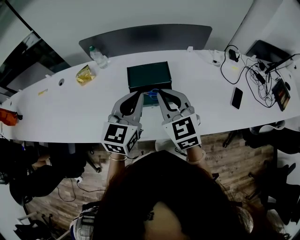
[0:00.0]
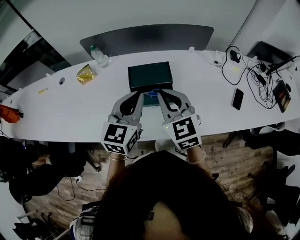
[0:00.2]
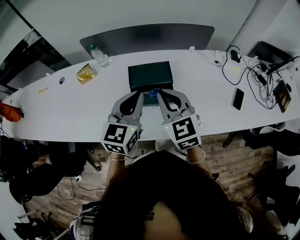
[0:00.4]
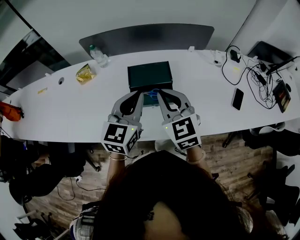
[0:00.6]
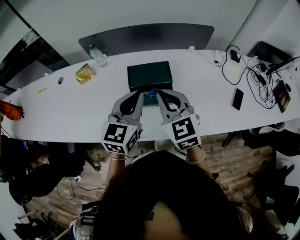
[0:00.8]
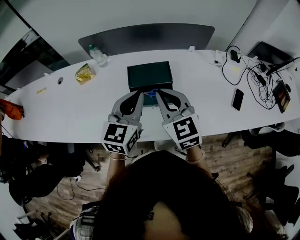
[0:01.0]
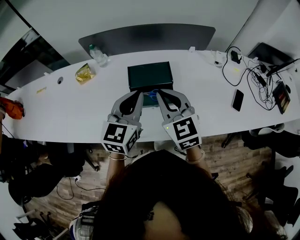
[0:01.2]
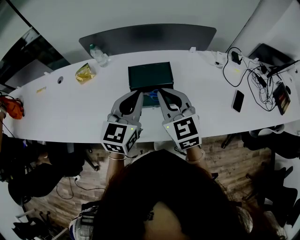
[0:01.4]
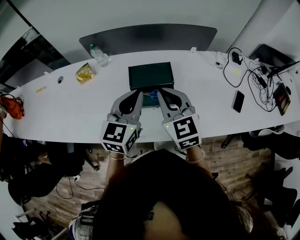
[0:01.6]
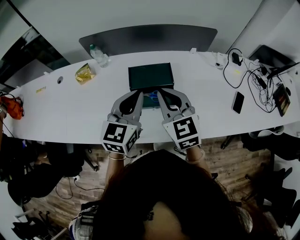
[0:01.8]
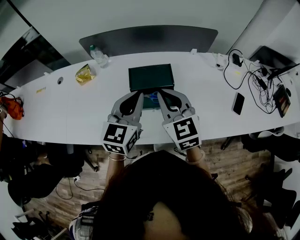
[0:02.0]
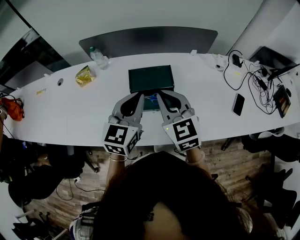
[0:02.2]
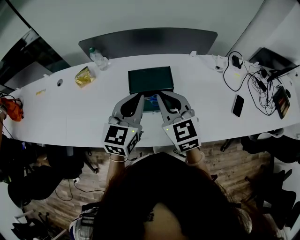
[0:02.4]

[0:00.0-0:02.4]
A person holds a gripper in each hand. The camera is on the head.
0:00.0 to 0:02.4: The grippers stay close to where they were, moving slightly.

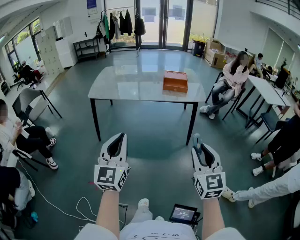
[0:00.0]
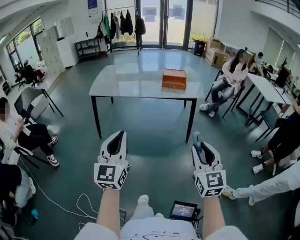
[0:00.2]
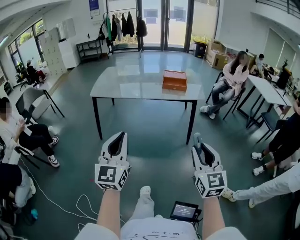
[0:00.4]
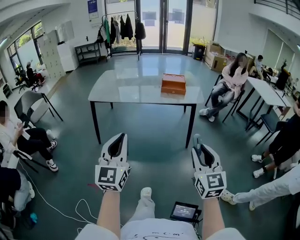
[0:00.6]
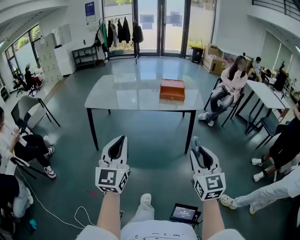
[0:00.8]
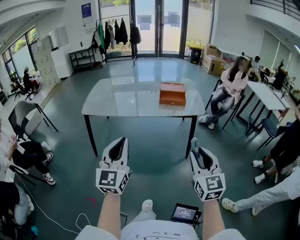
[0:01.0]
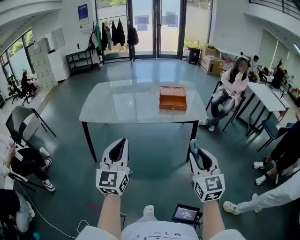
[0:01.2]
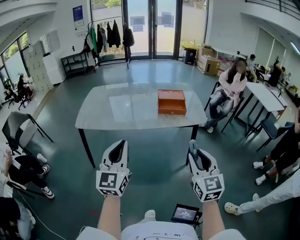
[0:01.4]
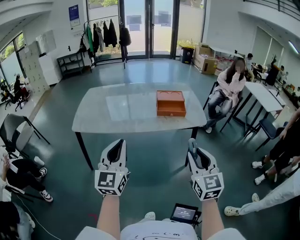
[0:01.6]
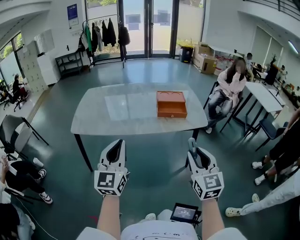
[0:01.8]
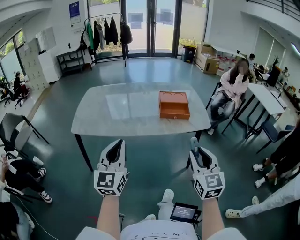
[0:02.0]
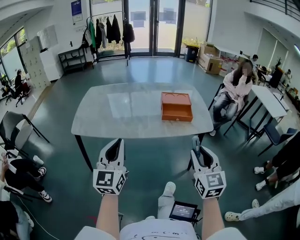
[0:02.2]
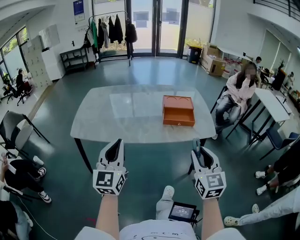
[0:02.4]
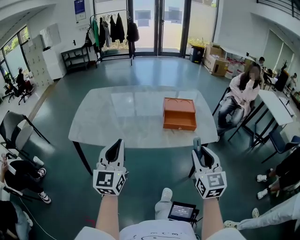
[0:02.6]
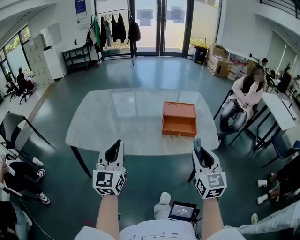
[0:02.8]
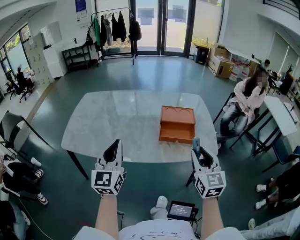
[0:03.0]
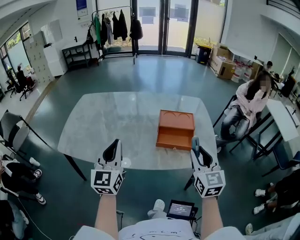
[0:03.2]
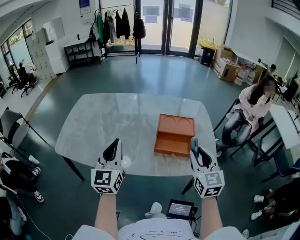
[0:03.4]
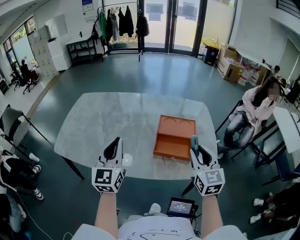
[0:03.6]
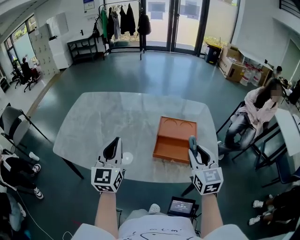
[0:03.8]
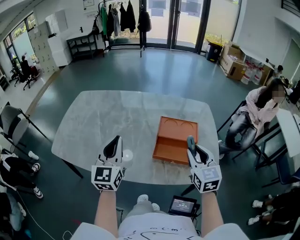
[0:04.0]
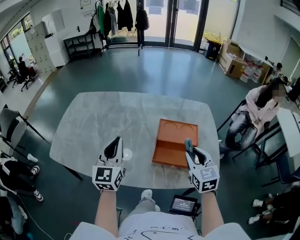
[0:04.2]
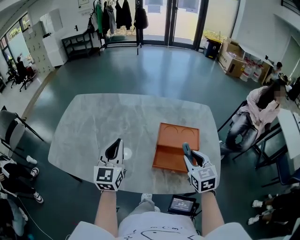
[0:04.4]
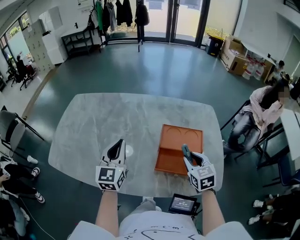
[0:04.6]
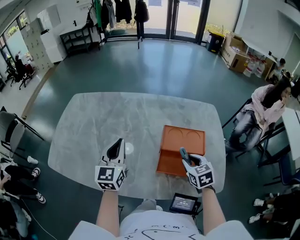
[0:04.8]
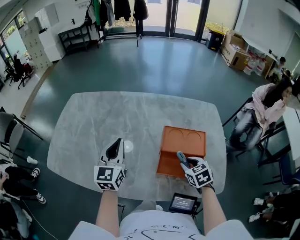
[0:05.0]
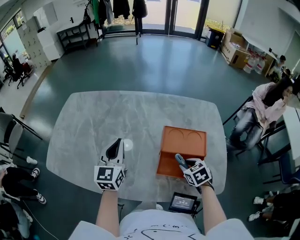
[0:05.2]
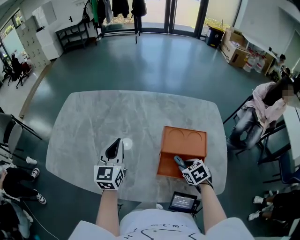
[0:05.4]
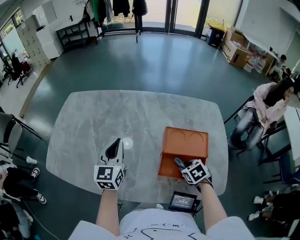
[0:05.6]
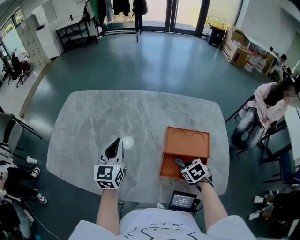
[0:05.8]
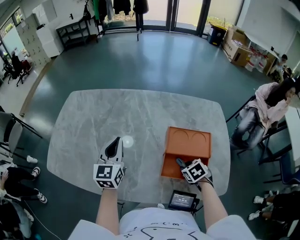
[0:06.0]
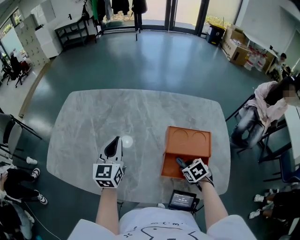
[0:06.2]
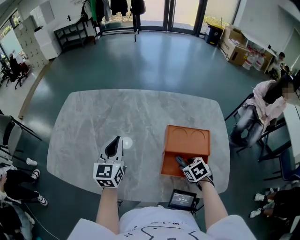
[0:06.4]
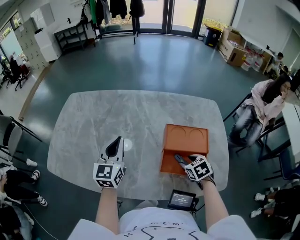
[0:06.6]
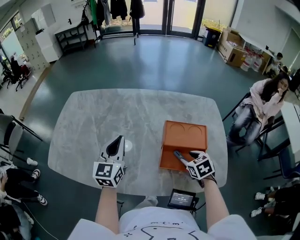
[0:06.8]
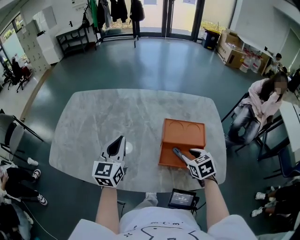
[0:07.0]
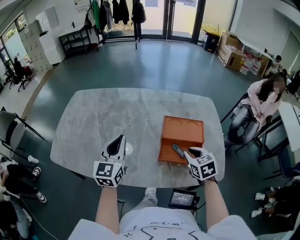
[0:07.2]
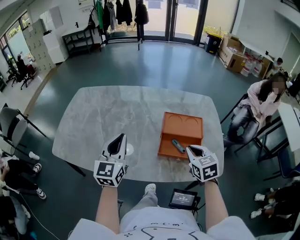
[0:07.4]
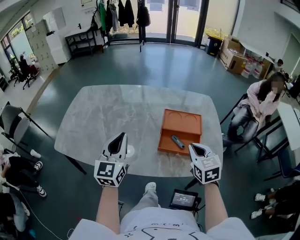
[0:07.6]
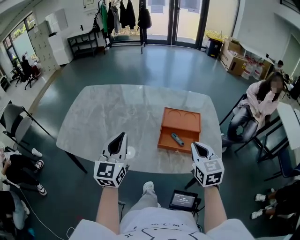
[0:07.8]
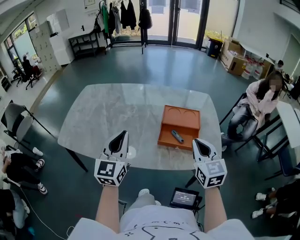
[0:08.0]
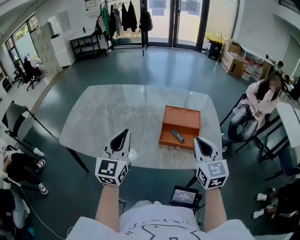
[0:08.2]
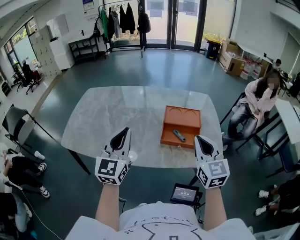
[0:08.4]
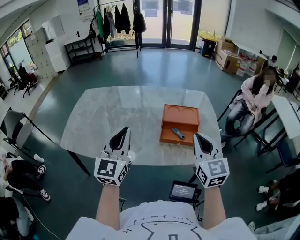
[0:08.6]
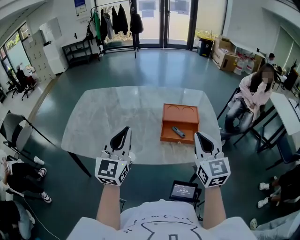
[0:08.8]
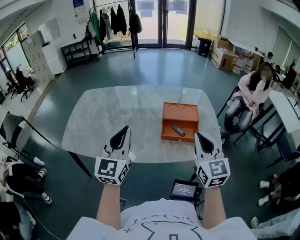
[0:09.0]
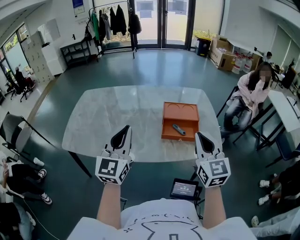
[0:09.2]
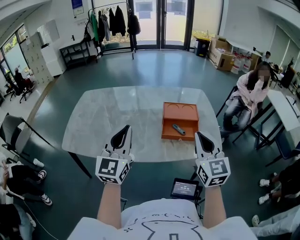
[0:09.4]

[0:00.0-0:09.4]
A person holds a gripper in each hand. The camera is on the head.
0:00.0 to 0:01.6: The grippers both shift forward by some 25 cm.
0:01.6 to 0:03.2: Both grippers travel together forward, some 30 cm.
0:03.2 to 0:04.8: The grippers both shift forward and downward by about 25 cm. The right gripper tilts its fingers some 30 degrees downward.
0:04.8 to 0:06.2: The left gripper moves forward, about 5 cm, while the right gripper moves downward, some 10 cm, and turns by some 30 degrees.
0:06.2 to 0:07.8: The left gripper travels backward and upward by about 20 cm. The right gripper heads upward and backward, covering some 25 cm, angles its fingers upward, by approximately 50 degrees, and closes.
0:07.8 to 0:09.4: The right gripper moves upward and backward, about 15 cm. The left gripper is displaced upward and backward by roughly 10 cm.

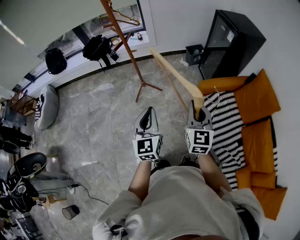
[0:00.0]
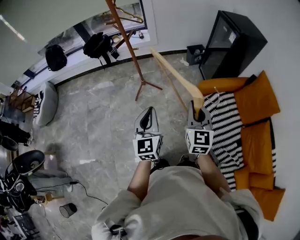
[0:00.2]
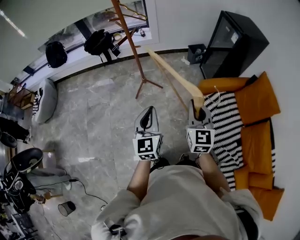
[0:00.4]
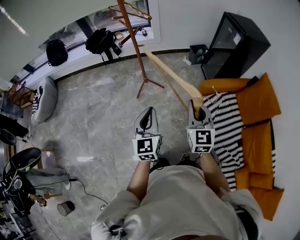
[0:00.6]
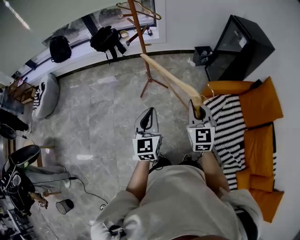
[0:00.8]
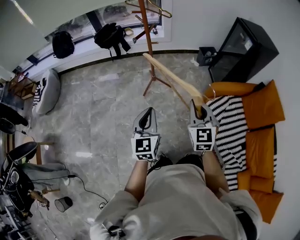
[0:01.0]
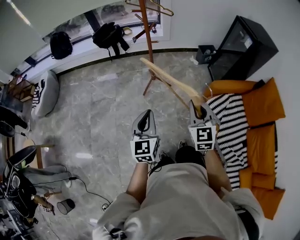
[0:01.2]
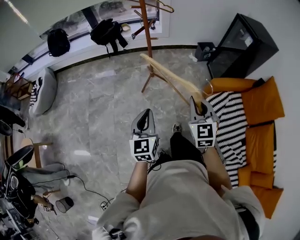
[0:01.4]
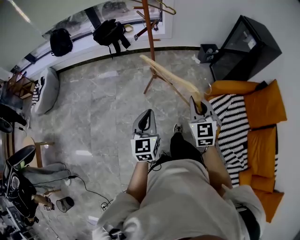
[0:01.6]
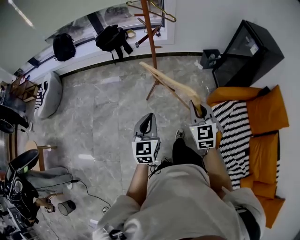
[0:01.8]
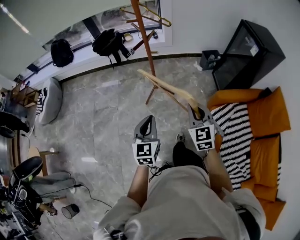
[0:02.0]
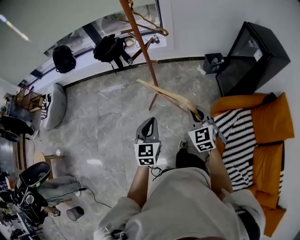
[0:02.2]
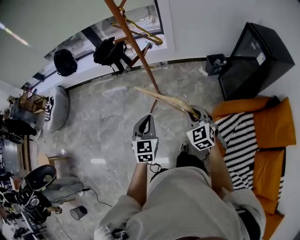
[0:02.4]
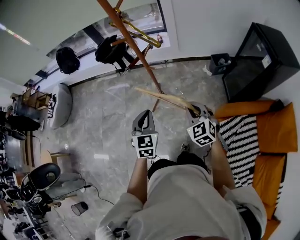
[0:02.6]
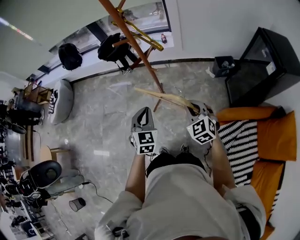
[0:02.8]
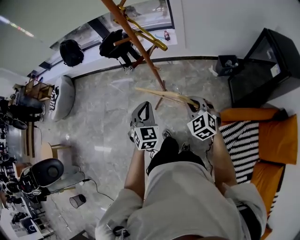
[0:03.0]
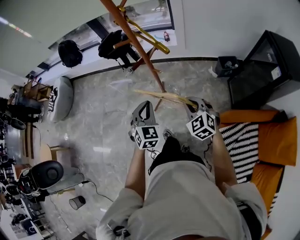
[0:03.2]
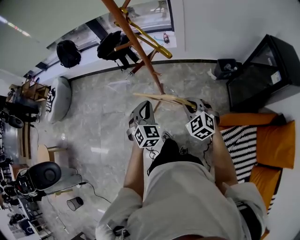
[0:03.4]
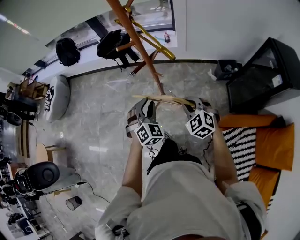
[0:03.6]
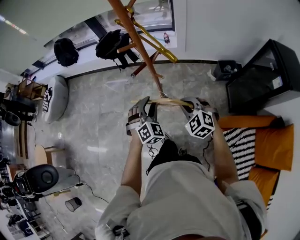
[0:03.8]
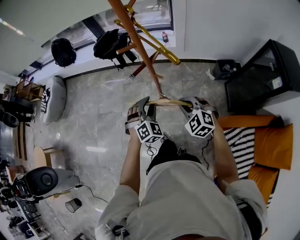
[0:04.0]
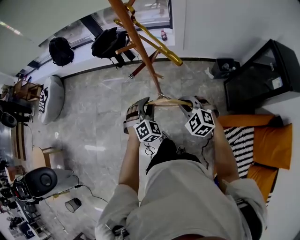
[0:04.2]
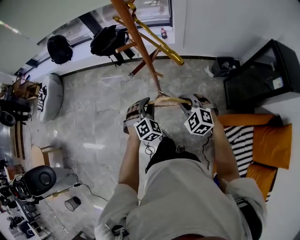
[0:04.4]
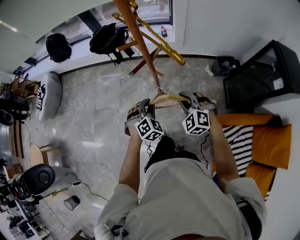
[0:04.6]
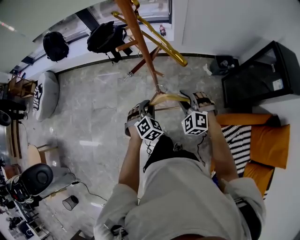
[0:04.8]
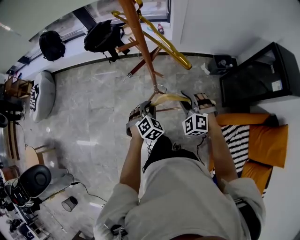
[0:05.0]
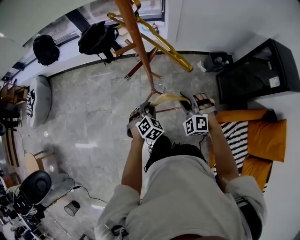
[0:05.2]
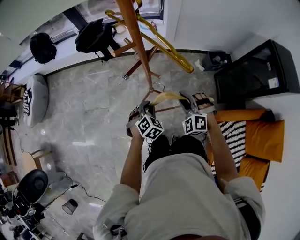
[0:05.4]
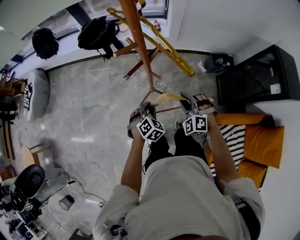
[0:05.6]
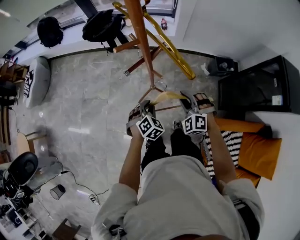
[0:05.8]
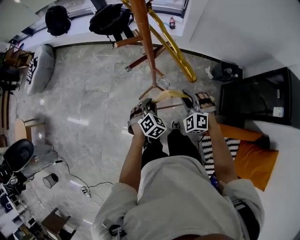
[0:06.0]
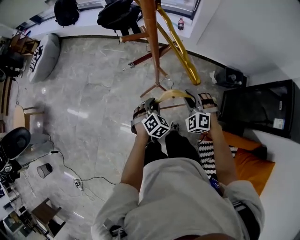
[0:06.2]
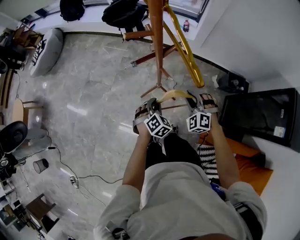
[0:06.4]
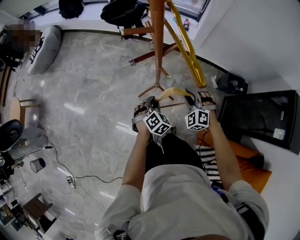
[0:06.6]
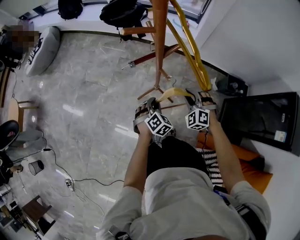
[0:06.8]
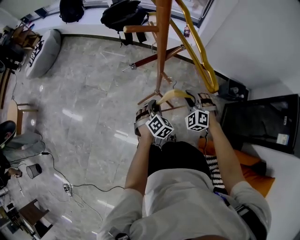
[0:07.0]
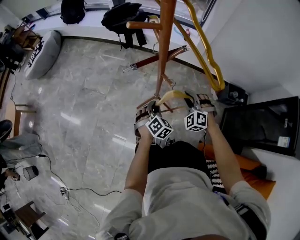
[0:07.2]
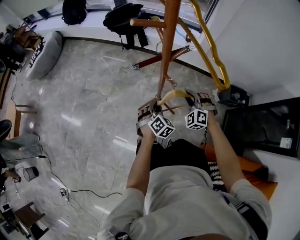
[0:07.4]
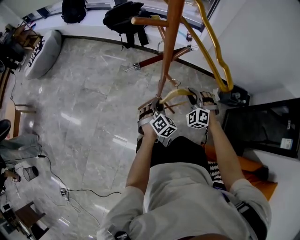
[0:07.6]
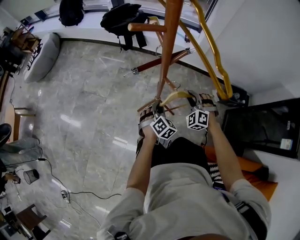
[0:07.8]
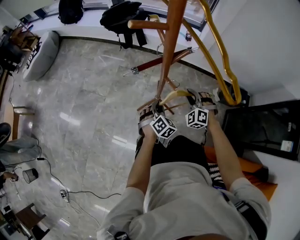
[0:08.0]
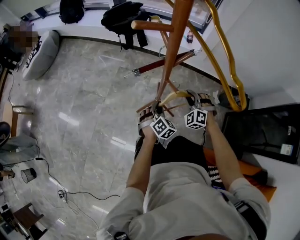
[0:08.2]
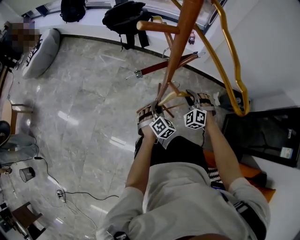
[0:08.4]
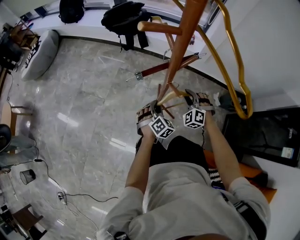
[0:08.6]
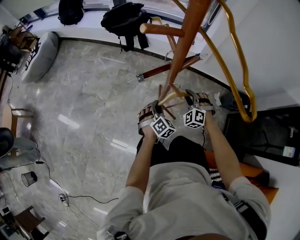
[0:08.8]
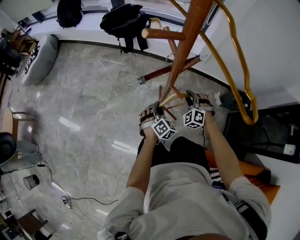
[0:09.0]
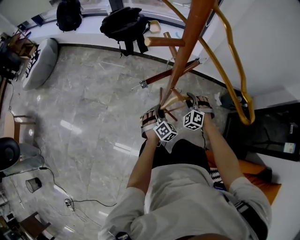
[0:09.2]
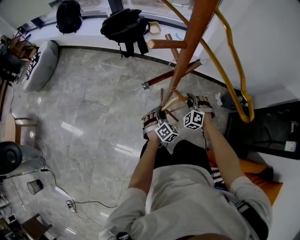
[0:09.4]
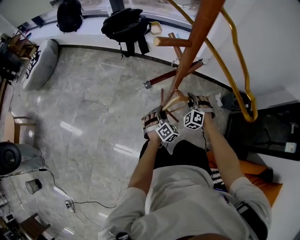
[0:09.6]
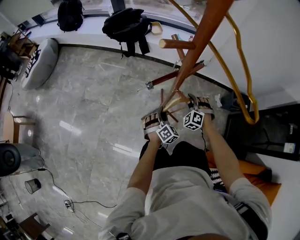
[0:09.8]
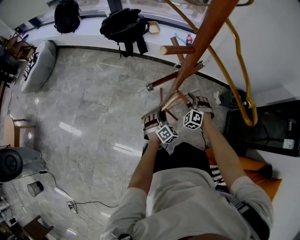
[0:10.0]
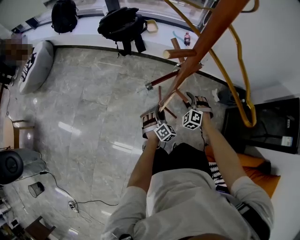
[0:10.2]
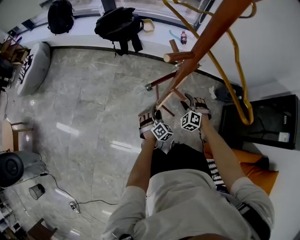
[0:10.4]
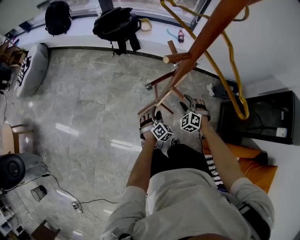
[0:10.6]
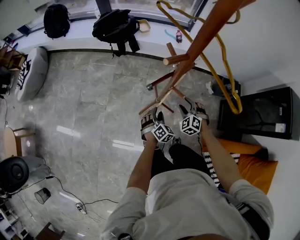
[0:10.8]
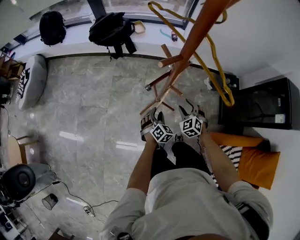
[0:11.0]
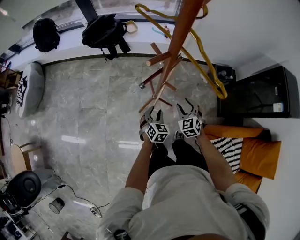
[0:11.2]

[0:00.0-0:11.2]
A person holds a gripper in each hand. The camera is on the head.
0:00.0 to 0:01.6: The left gripper travels to the left and downward by some 20 cm; the right gripper heads to the left, covering about 15 cm.
0:01.6 to 0:03.2: Both grippers move forward, about 35 cm. The left gripper rotates some 30 degrees, while the right gripper changes its angle by approximately 30 degrees.
0:03.2 to 0:04.8: The left gripper heads downward and forward, covering some 15 cm, and rotates roughly 30 degrees; the right gripper is displaced forward by some 10 cm, swivels some 30 degrees, and opens.
0:04.8 to 0:06.4: The right gripper travels downward, forward and to the right by some 15 cm, while the left gripper moves downward and to the right, about 10 cm, and changes its angle by approximately 20 degrees.
0:06.4 to 0:08.0: The grippers both shift downward and forward by approximately 15 cm.
0:08.0 to 0:09.6: The right gripper travels downward by some 5 cm; the left gripper moves about 5 cm.
0:09.6 to 0:11.2: The left gripper heads upward and backward, covering approximately 15 cm, and swivels some 20 degrees. Meanwhile the right gripper moves upward and backward, approximately 20 cm, rotates around the line of its fingers by some 50 degrees, clockwise from behind, and opens up.
